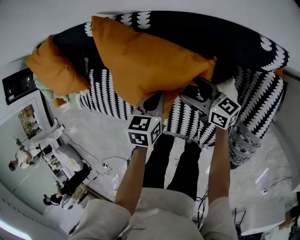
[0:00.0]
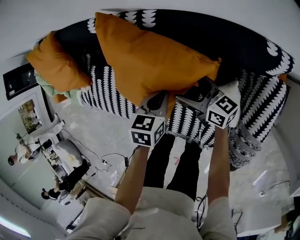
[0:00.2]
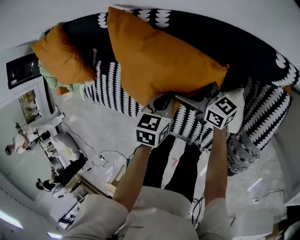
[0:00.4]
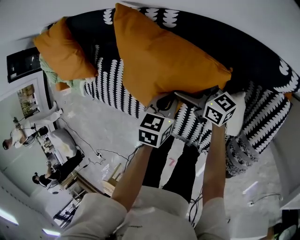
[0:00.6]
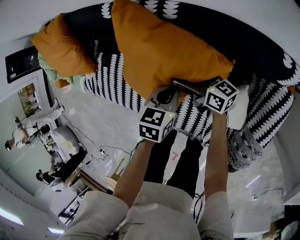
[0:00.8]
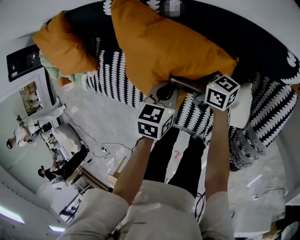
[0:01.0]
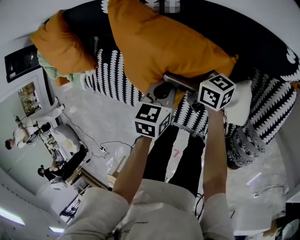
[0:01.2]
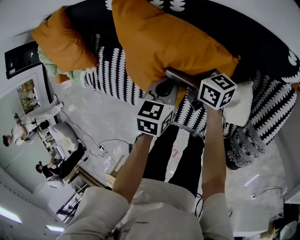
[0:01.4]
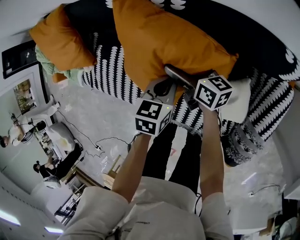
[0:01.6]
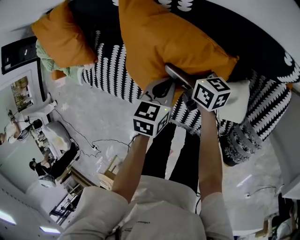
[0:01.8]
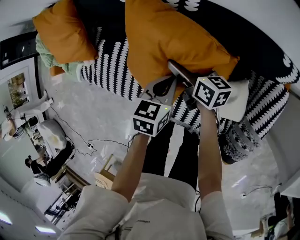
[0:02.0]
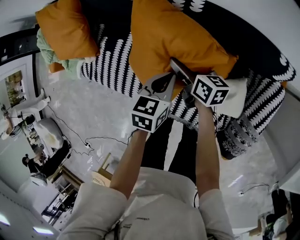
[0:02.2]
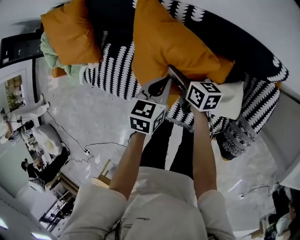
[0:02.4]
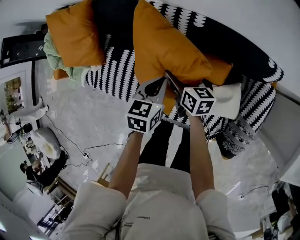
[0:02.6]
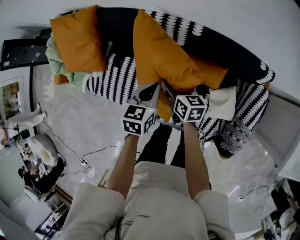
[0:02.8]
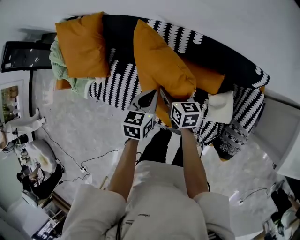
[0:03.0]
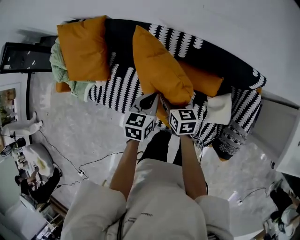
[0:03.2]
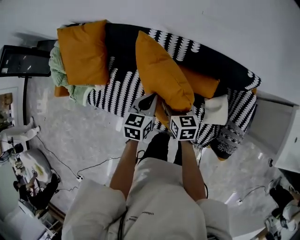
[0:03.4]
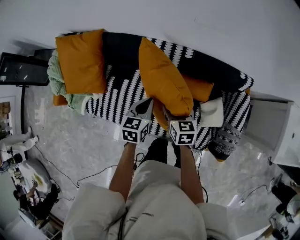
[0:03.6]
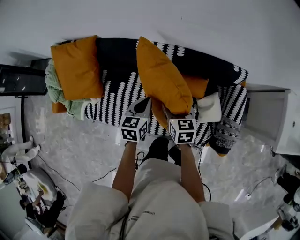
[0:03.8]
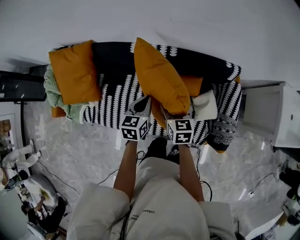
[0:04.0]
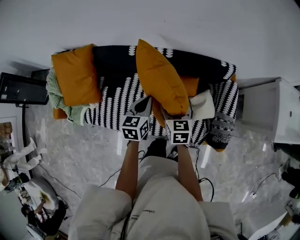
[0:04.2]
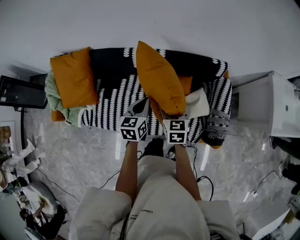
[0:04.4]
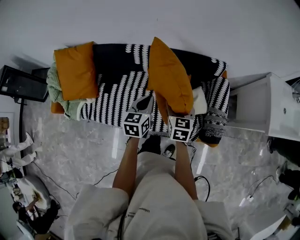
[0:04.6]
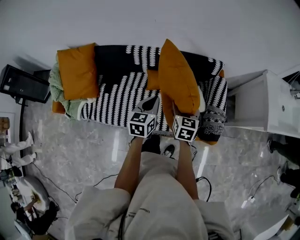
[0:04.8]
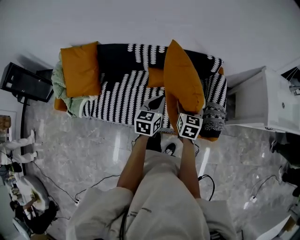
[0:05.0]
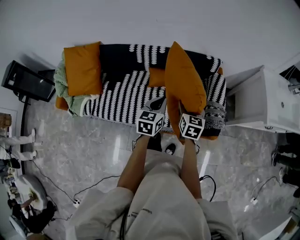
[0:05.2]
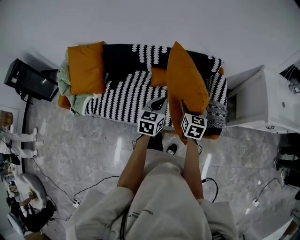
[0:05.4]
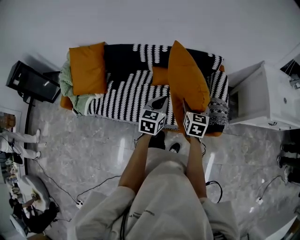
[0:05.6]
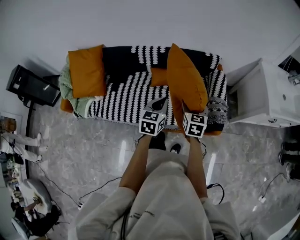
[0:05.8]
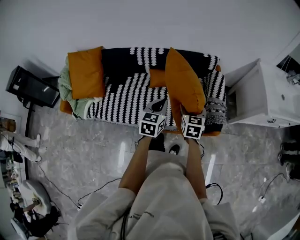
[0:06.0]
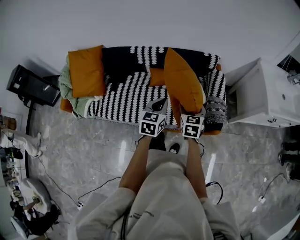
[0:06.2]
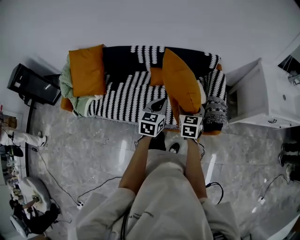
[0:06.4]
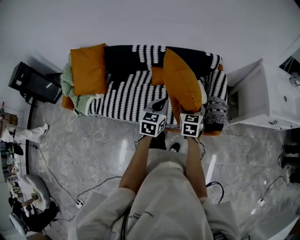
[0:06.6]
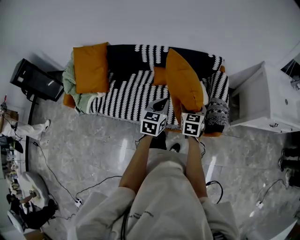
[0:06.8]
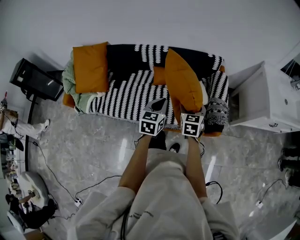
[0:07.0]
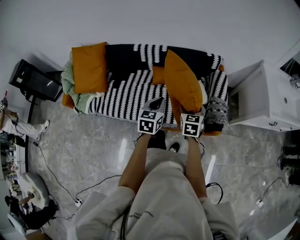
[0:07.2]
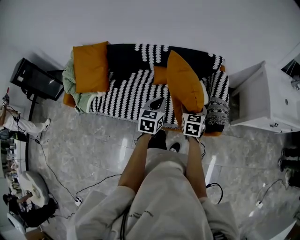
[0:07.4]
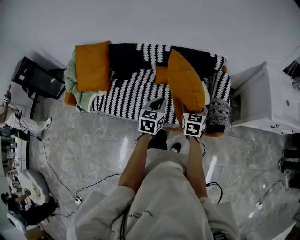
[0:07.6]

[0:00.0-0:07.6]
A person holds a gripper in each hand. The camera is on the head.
0:00.0 to 0:01.6: The right gripper heads to the left and forward, covering some 10 cm, and opens its fingers.
0:01.6 to 0:03.0: The left gripper is displaced upward and to the left by roughly 25 cm, while the right gripper is displaced upward, to the left and backward by some 20 cm, rotates some 30 degrees, and closes up.
0:03.0 to 0:04.6: The left gripper shifts about 15 cm upward, backward and to the right, while the right gripper shifts roughly 25 cm upward, to the right and backward, and turns by about 40 degrees.
0:04.6 to 0:06.0: The two grippers go approximately 20 cm backward and to the right.
0:06.0 to 0:07.6: The grippers make only small movements.

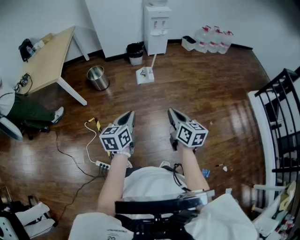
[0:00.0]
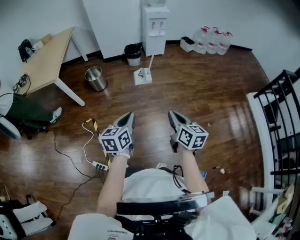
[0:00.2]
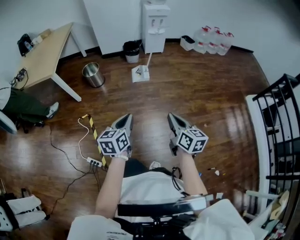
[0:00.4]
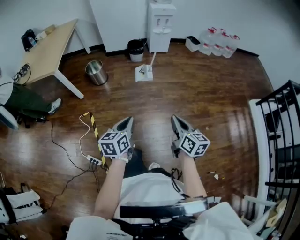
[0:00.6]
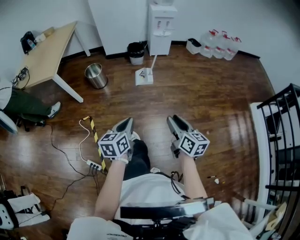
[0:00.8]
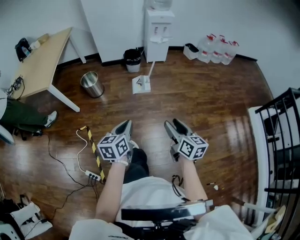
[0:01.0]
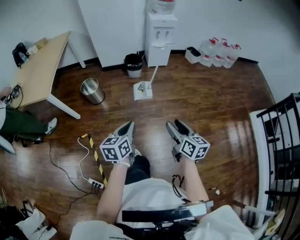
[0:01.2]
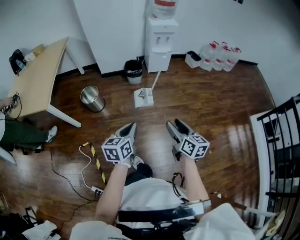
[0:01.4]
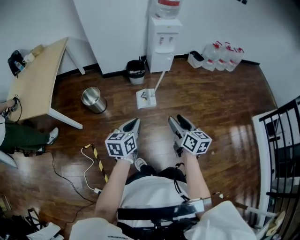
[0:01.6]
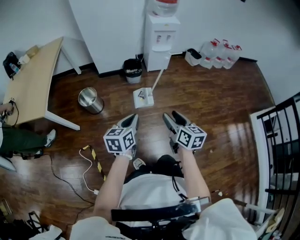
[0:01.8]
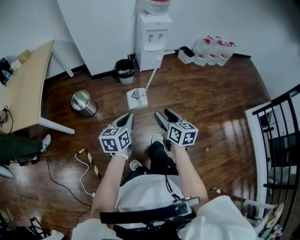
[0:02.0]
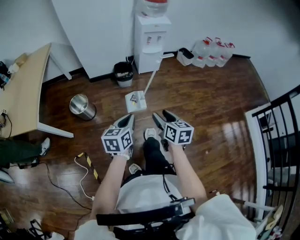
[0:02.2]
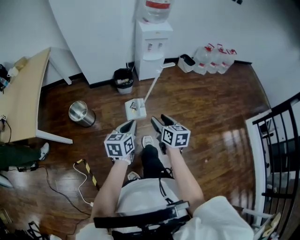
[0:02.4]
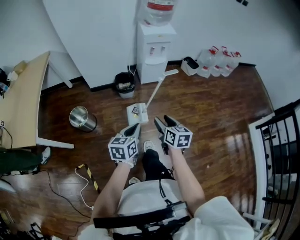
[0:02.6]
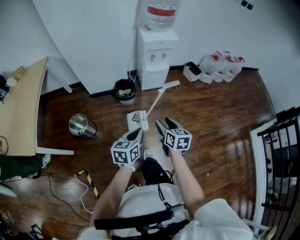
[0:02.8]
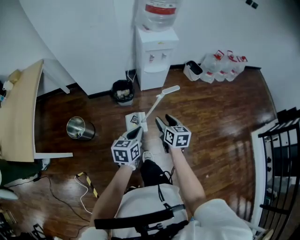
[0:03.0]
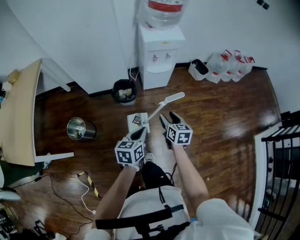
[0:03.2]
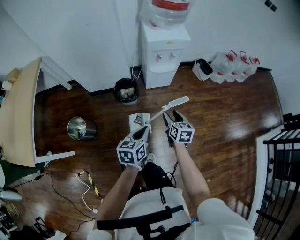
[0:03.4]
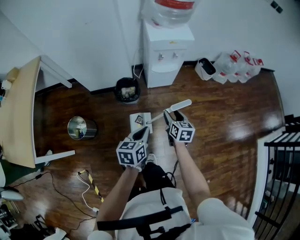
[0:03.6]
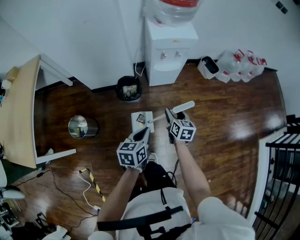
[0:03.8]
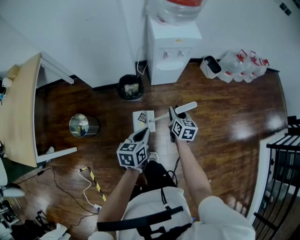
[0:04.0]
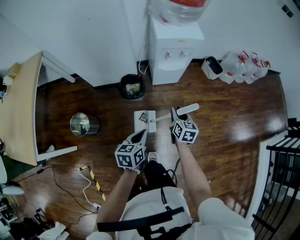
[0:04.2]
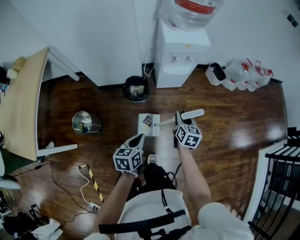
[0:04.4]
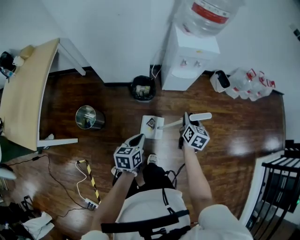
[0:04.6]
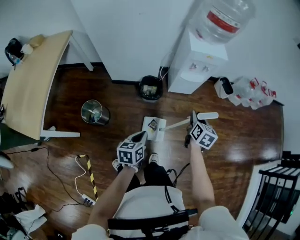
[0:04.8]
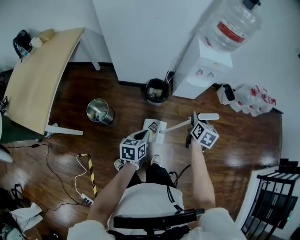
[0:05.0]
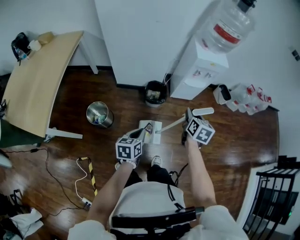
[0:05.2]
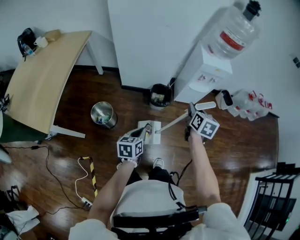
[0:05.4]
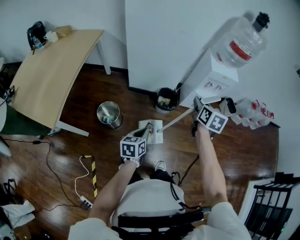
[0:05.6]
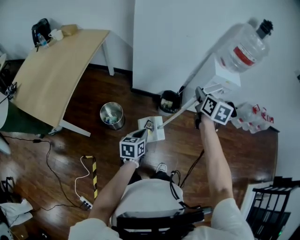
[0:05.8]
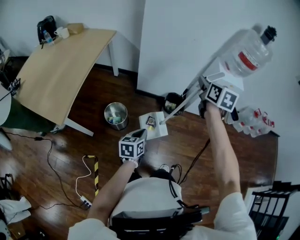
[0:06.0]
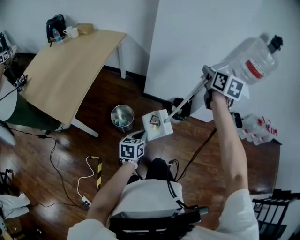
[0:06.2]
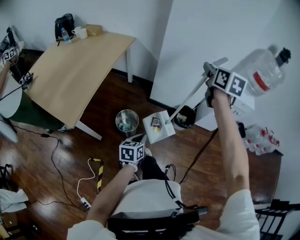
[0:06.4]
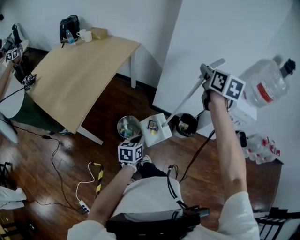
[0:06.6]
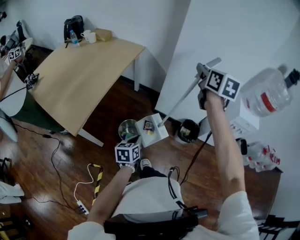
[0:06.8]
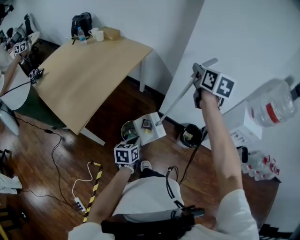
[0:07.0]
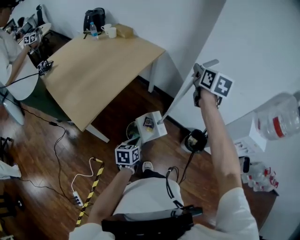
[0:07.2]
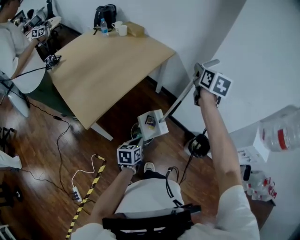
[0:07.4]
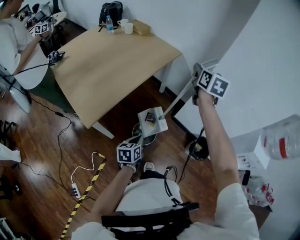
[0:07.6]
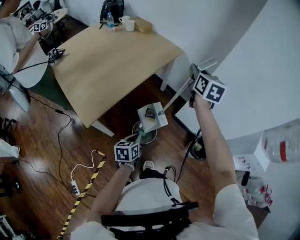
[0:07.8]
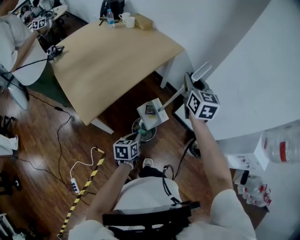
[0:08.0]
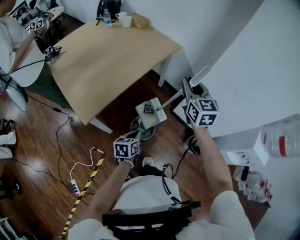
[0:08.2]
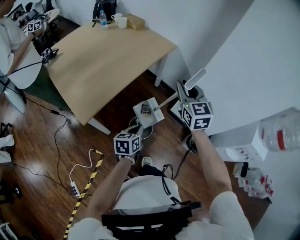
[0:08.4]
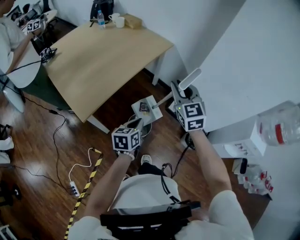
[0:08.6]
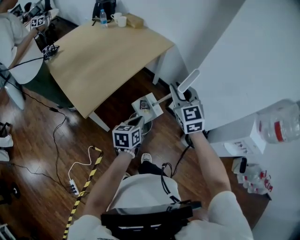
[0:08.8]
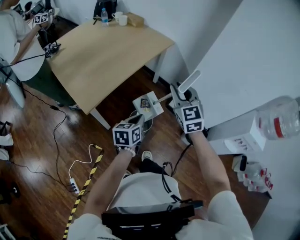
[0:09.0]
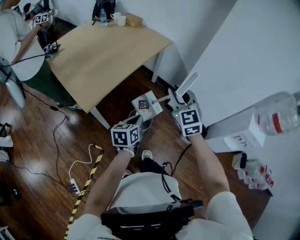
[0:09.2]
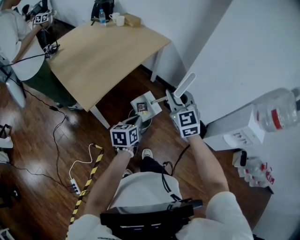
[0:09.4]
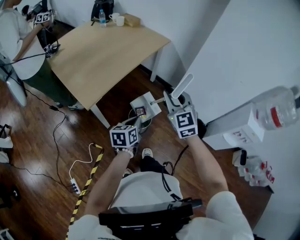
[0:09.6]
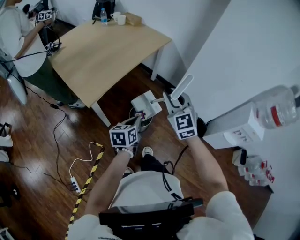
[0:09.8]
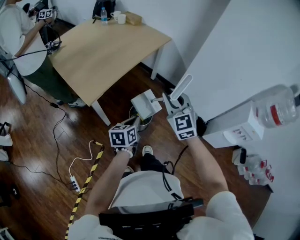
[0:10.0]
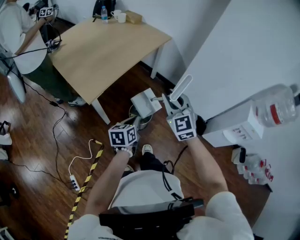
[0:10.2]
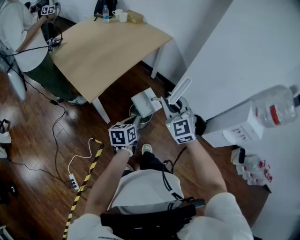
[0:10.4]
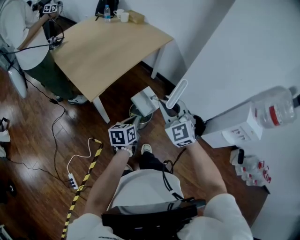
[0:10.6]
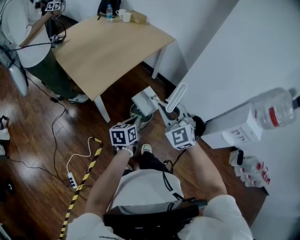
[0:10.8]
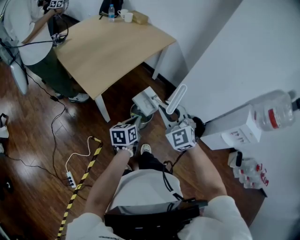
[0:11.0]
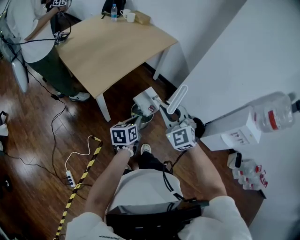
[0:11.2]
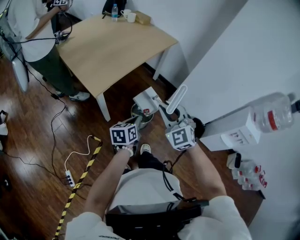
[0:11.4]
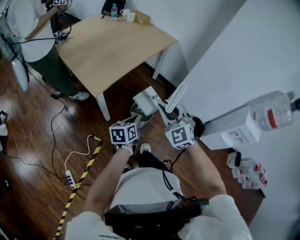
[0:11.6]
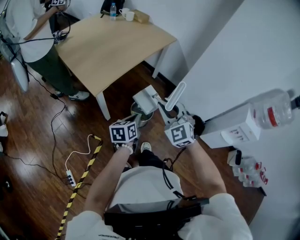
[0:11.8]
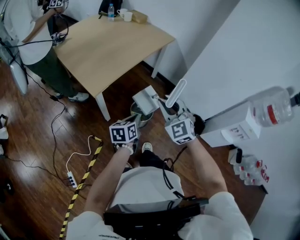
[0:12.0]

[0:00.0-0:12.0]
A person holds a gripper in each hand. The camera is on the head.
0:00.0 to 0:01.6: Both grippers move forward, some 35 cm. The right gripper opens up.
0:01.6 to 0:03.0: Both grippers move forward, roughly 35 cm.
0:03.0 to 0:04.4: The left gripper shifts about 15 cm forward, downward and to the left; the right gripper moves forward and downward, about 20 cm, and closes.
0:04.4 to 0:06.0: The left gripper heads to the left and backward, covering roughly 35 cm. The right gripper goes approximately 50 cm to the left and upward, and swivels about 20 degrees.
0:06.0 to 0:07.6: The right gripper travels upward and back again, roughly 10 cm each way, and changes its angle by some 30 degrees. The left gripper shifts by roughly 25 cm, and swivels some 30 degrees.
0:07.6 to 0:09.0: The left gripper heads upward, covering roughly 10 cm. Meanwhile the right gripper heads backward, covering approximately 20 cm, and rotates approximately 40 degrees.
0:09.0 to 0:10.4: The grippers both shift backward by approximately 10 cm.
0:10.4 to 0:12.0: The right gripper ends up approximately 5 cm from where it was.

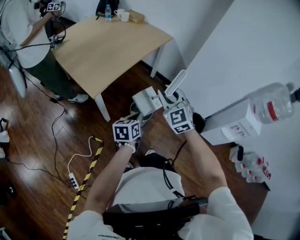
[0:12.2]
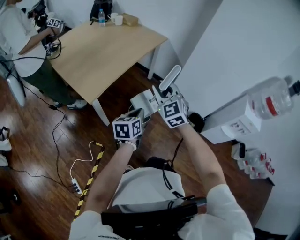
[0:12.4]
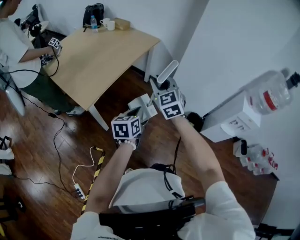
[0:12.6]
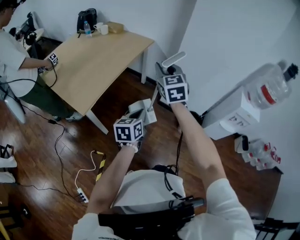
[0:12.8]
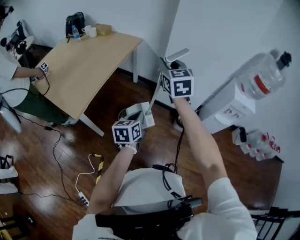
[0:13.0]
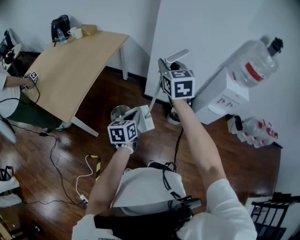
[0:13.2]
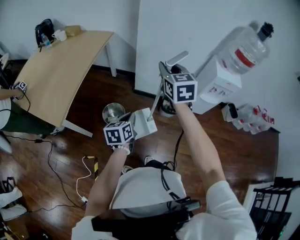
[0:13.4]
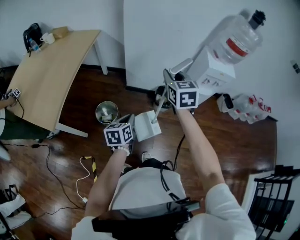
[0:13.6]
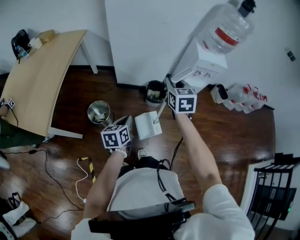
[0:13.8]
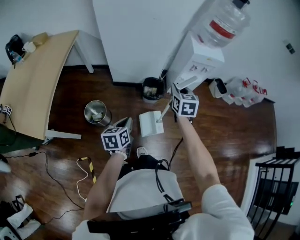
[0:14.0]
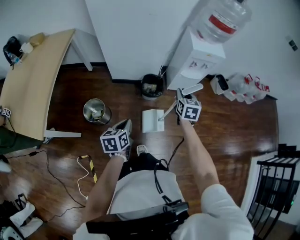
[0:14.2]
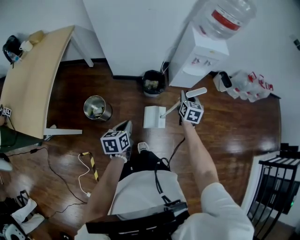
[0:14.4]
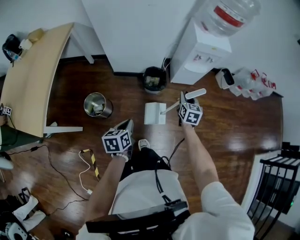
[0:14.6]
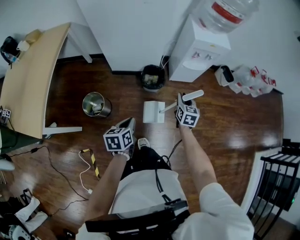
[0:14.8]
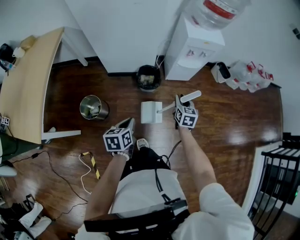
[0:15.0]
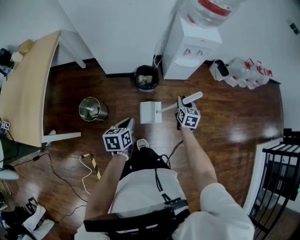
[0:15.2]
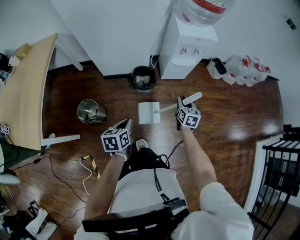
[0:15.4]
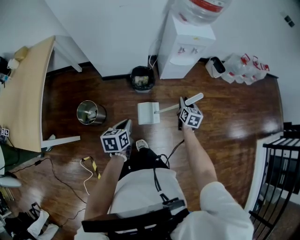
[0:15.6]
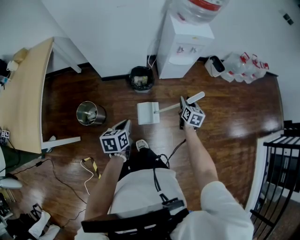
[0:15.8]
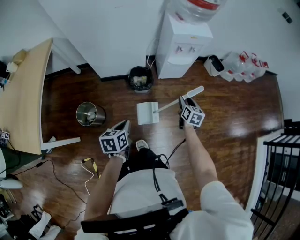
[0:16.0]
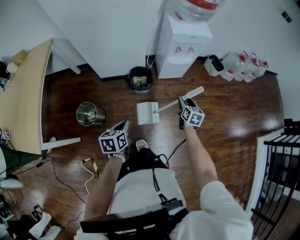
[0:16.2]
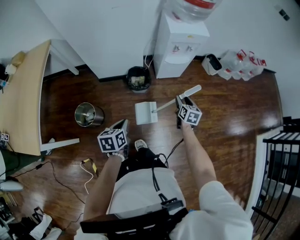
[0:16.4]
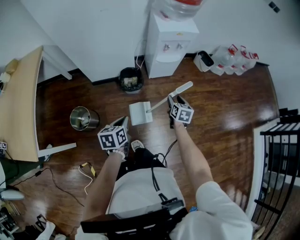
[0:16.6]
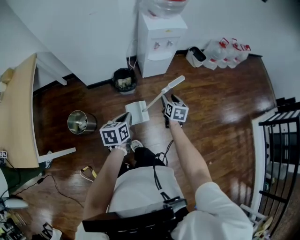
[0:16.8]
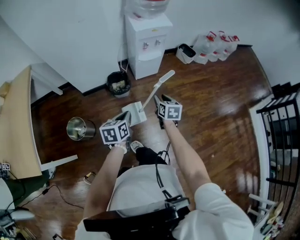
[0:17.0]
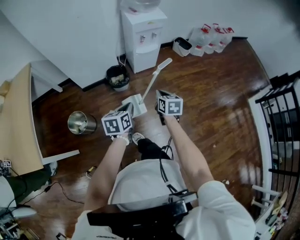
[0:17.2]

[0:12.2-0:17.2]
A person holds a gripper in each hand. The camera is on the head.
0:12.2 to 0:13.8: The left gripper reaches approximately 5 cm upward, then returns, and turns by roughly 30 degrees. Meanwhile the right gripper reaches some 10 cm upward, then returns, and turns by some 60 degrees.
0:13.8 to 0:15.6: The right gripper goes some 40 cm to the right and downward, and swivels some 30 degrees. The left gripper heads to the right and downward, covering about 15 cm.
0:15.6 to 0:17.2: The left gripper shifts about 10 cm to the right and upward; the right gripper moves backward and upward, approximately 20 cm, and closes.
